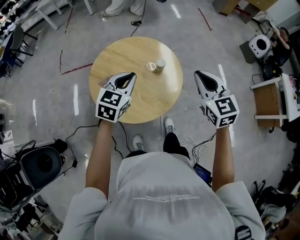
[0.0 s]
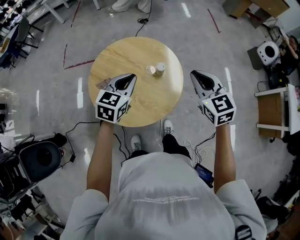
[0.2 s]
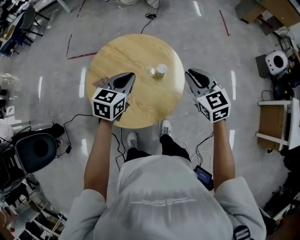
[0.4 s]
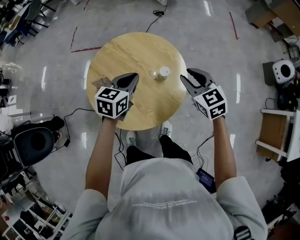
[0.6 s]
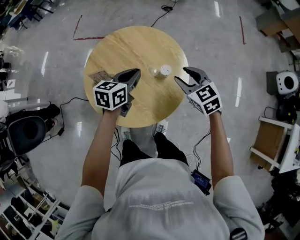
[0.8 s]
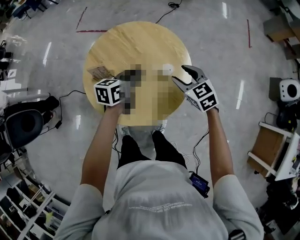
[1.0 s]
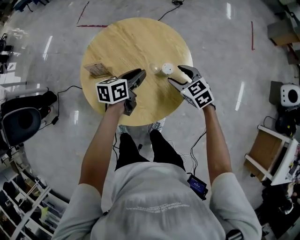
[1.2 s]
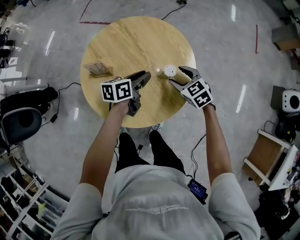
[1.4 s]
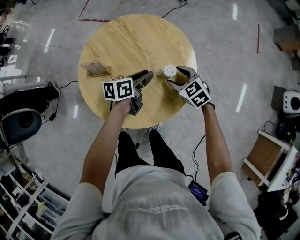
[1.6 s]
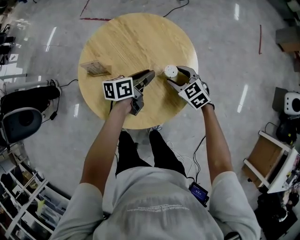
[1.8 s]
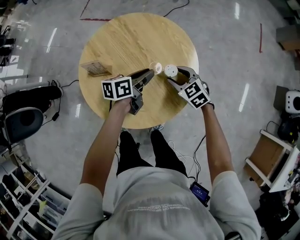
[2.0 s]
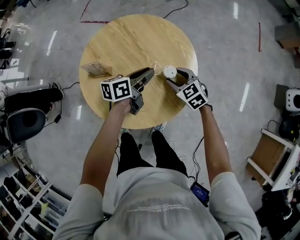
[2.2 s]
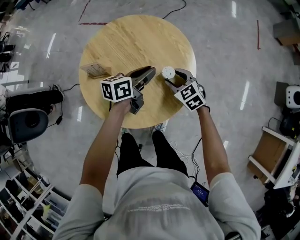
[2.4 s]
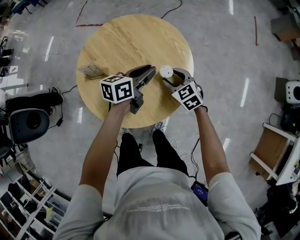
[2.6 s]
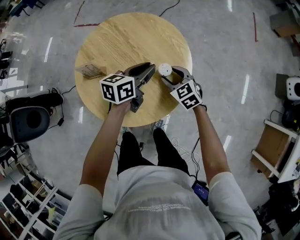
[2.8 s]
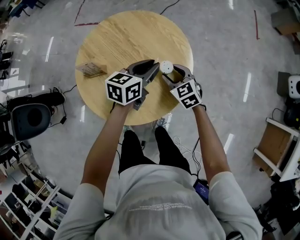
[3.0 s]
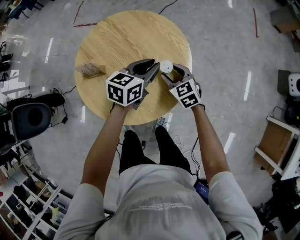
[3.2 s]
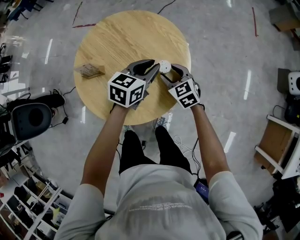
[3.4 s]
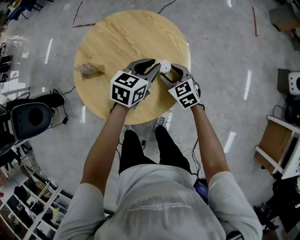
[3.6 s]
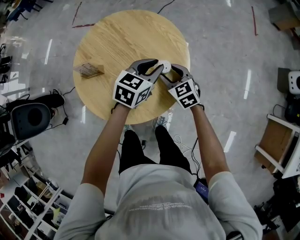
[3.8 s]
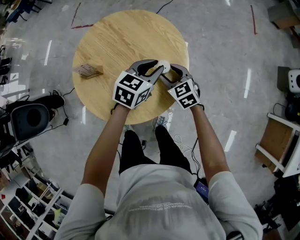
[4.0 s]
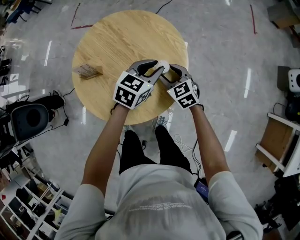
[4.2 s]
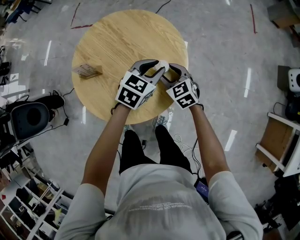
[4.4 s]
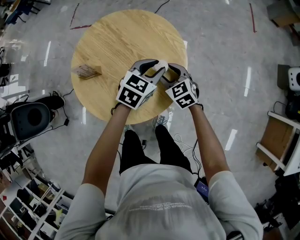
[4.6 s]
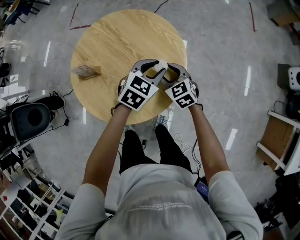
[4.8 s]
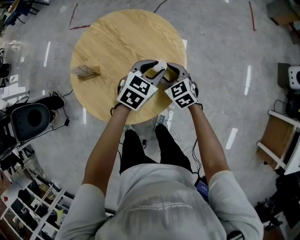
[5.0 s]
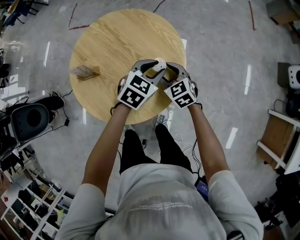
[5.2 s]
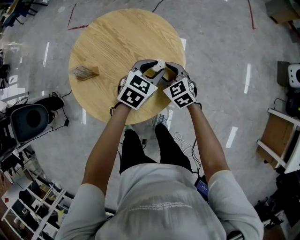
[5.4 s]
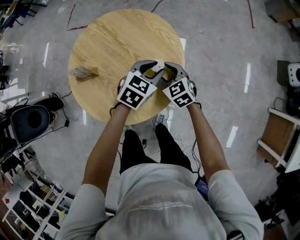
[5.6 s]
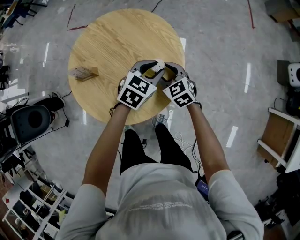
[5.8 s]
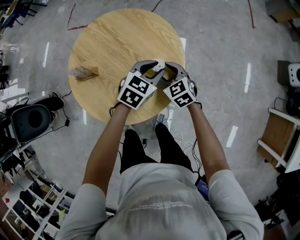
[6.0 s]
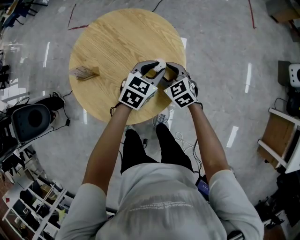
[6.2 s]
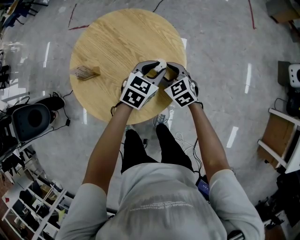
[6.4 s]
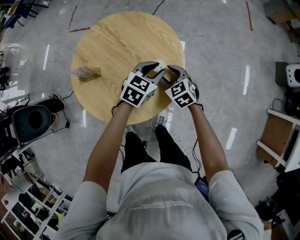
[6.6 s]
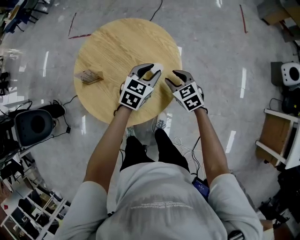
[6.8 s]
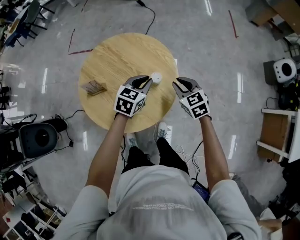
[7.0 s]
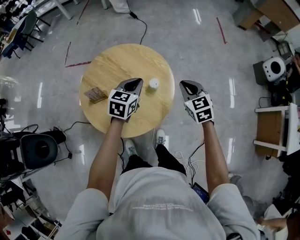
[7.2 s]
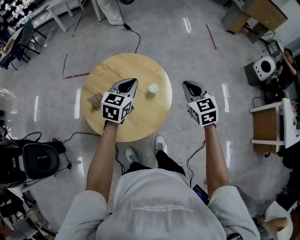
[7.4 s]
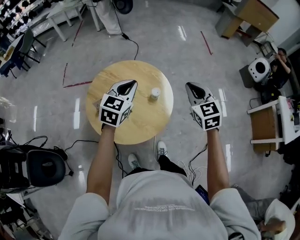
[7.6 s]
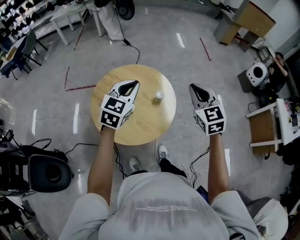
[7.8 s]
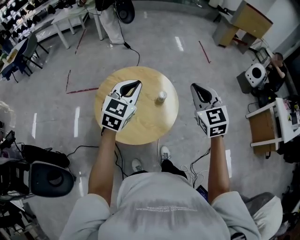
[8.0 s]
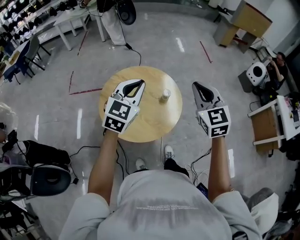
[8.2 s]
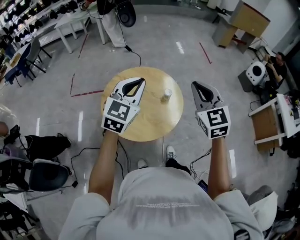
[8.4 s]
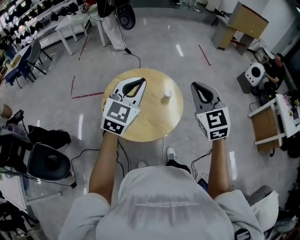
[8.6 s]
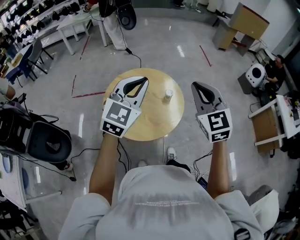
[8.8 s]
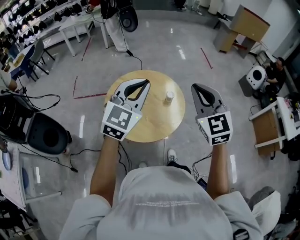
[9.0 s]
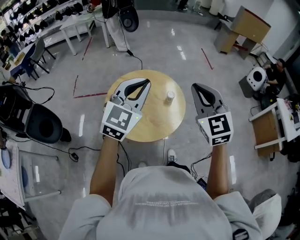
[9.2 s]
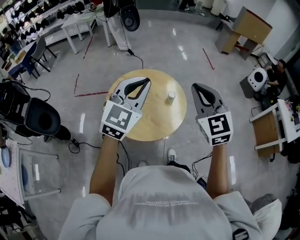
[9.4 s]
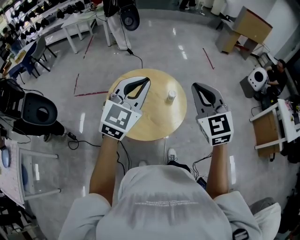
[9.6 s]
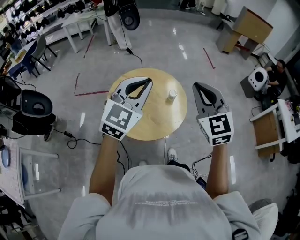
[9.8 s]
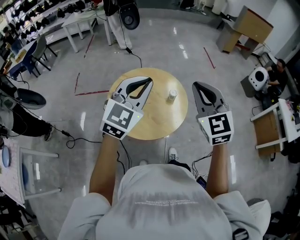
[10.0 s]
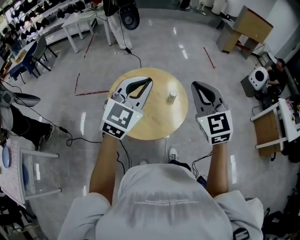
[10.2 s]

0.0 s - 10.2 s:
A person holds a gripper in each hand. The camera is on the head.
0.0 s - 1.4 s: The two grippers go some 25 cm downward. The right gripper rotates roughly 50 degrees, and opens; the left gripper rotates around the line of its fingers by approximately 60 degrees, counterclockwise from behind, and opens up.
1.4 s - 3.0 s: The left gripper moves to the right, about 5 cm, and turns by roughly 20 degrees.
3.0 s - 4.4 s: The left gripper shifts by roughly 5 cm, and swivels about 30 degrees.
4.4 s - 5.8 s: The grippers make only small movements.
5.8 s - 7.2 s: The left gripper travels upward and to the left by some 15 cm, and closes up; the right gripper goes approximately 20 cm upward and to the right, changes its angle by about 20 degrees, and closes.
7.2 s - 8.8 s: Both grippers move upward and backward, roughly 35 cm. The right gripper turns by some 30 degrees, while the left gripper turns by about 40 degrees.
8.8 s - 10.2 s: The grippers move only a little.

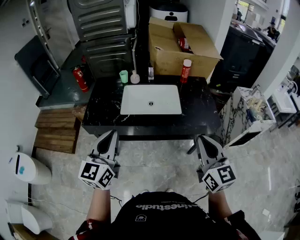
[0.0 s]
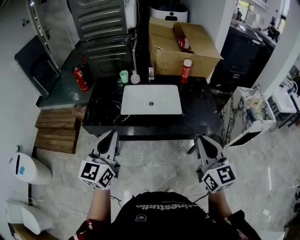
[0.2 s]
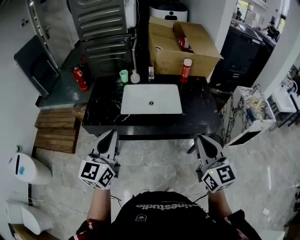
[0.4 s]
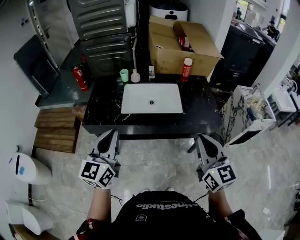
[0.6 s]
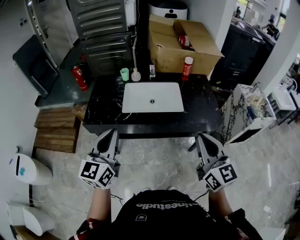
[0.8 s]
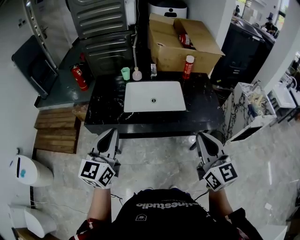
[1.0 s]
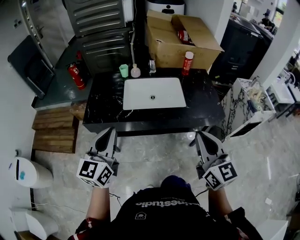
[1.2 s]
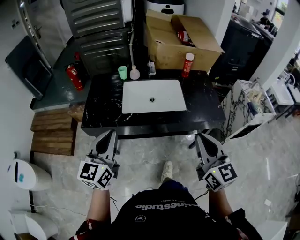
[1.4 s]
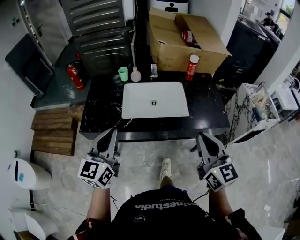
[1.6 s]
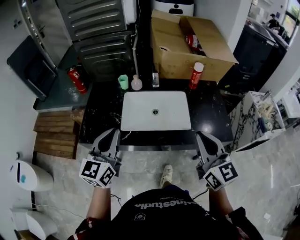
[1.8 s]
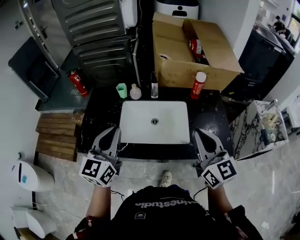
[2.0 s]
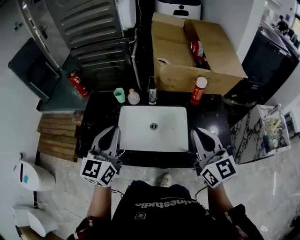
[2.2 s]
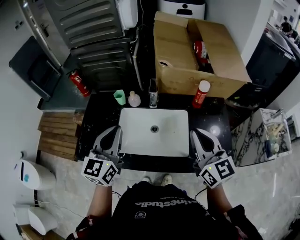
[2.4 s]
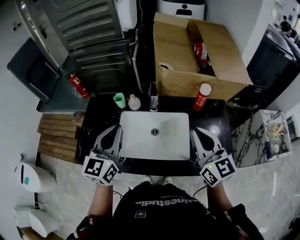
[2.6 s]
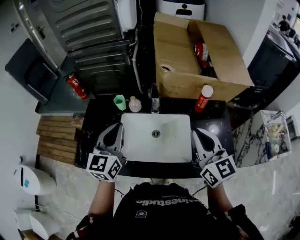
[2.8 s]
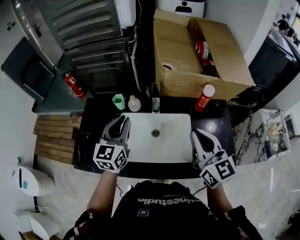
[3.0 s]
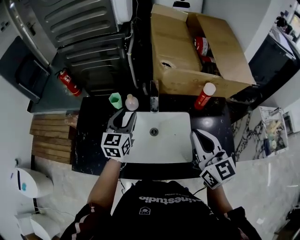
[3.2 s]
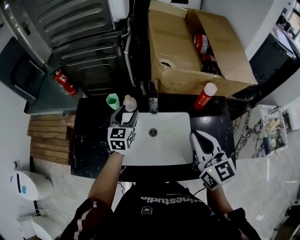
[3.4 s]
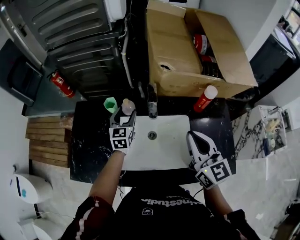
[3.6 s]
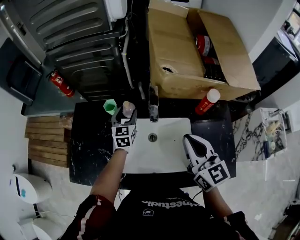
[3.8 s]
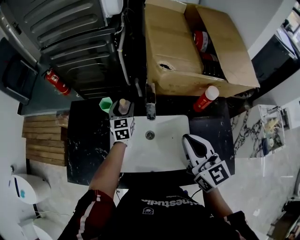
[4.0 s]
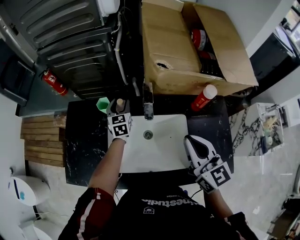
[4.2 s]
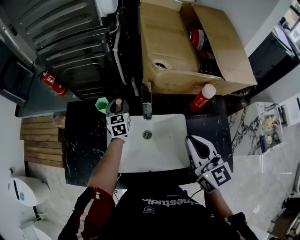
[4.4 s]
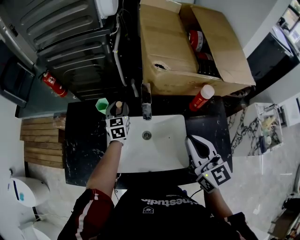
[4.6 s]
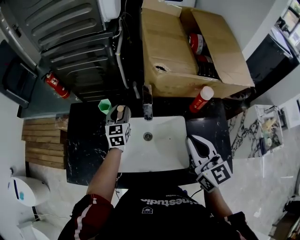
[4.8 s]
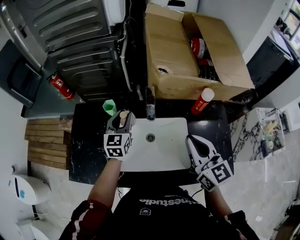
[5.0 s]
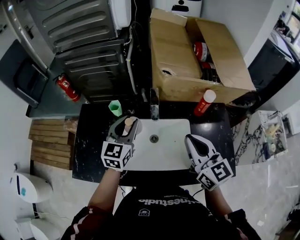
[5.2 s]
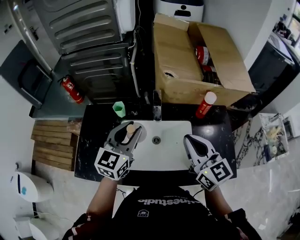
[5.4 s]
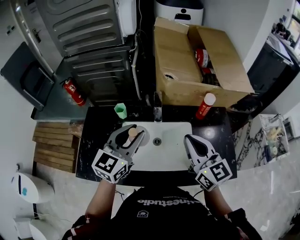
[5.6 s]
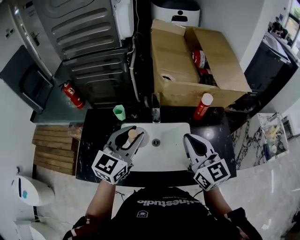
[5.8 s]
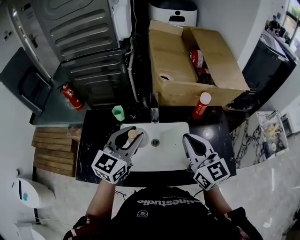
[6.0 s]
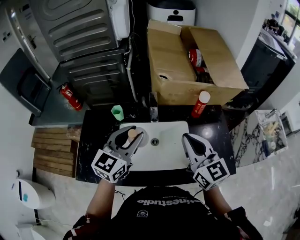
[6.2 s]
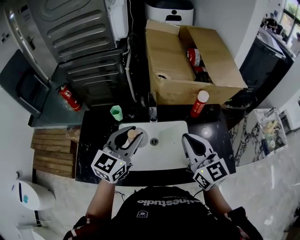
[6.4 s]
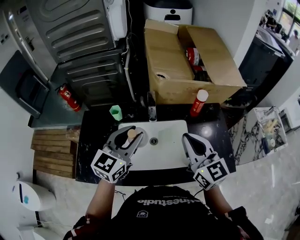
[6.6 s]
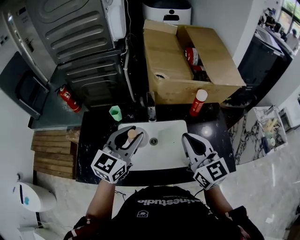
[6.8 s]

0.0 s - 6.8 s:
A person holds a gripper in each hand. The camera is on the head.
0.0 s - 1.4 s: The left gripper shifts by approximately 5 cm. The right gripper travels to the left by roughly 5 cm.
1.4 s - 2.8 s: The grippers both shift forward by some 35 cm.
2.8 s - 4.0 s: The left gripper travels forward and downward by some 35 cm, and opens its fingers; the right gripper goes approximately 10 cm forward and downward.
4.0 s - 5.4 s: The right gripper moves approximately 5 cm; the left gripper travels backward and upward by about 30 cm, turns by some 30 degrees, and closes its fingers.
5.4 s - 6.8 s: The left gripper ends up roughly 5 cm from where it was.

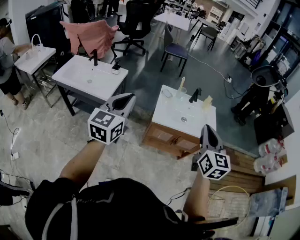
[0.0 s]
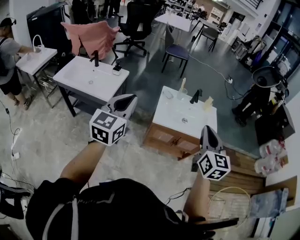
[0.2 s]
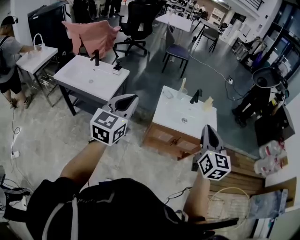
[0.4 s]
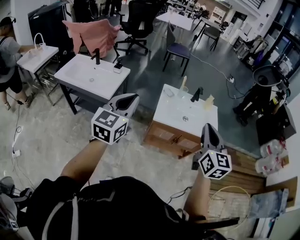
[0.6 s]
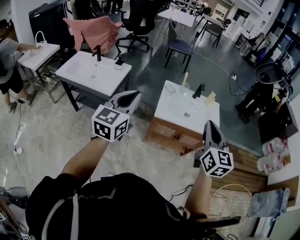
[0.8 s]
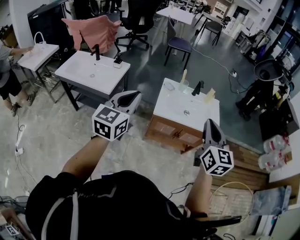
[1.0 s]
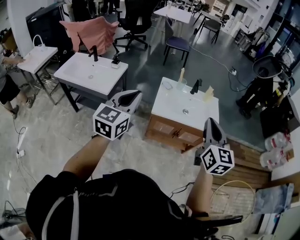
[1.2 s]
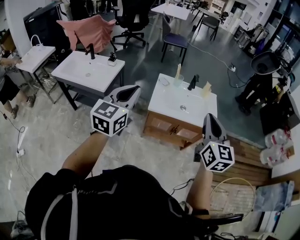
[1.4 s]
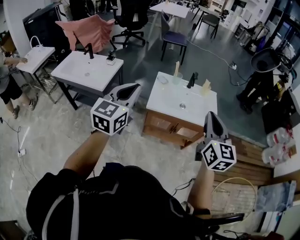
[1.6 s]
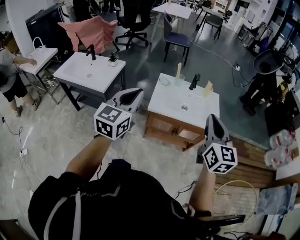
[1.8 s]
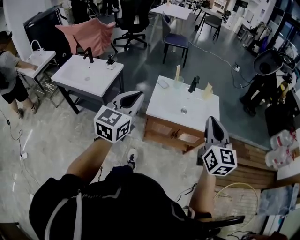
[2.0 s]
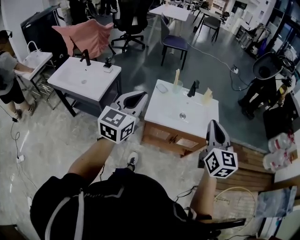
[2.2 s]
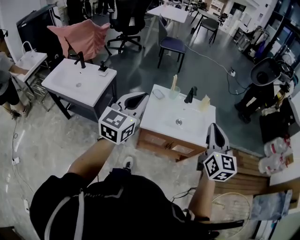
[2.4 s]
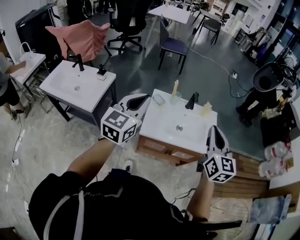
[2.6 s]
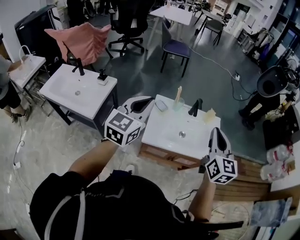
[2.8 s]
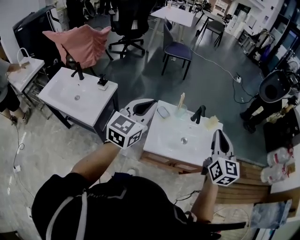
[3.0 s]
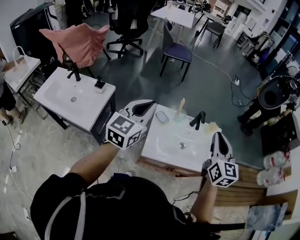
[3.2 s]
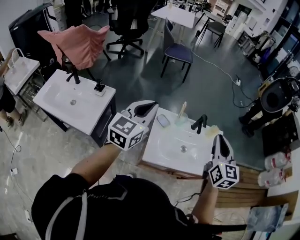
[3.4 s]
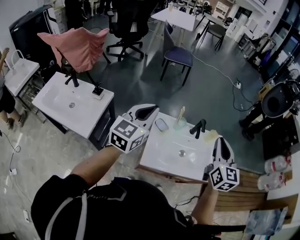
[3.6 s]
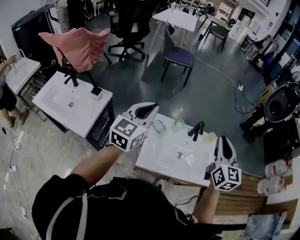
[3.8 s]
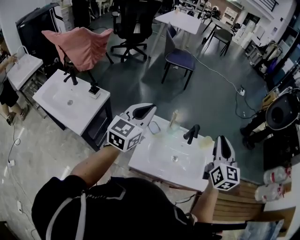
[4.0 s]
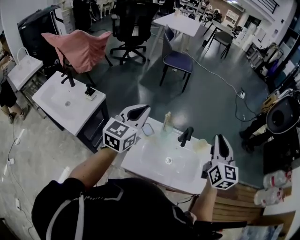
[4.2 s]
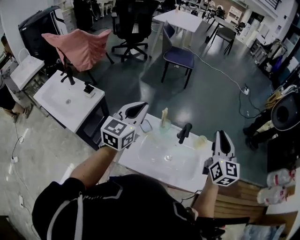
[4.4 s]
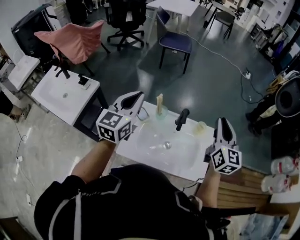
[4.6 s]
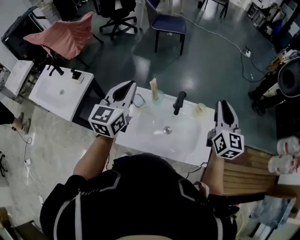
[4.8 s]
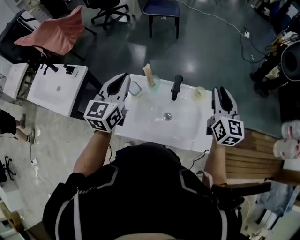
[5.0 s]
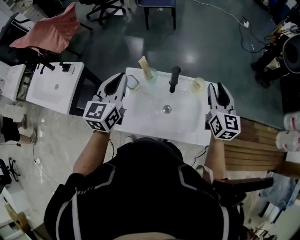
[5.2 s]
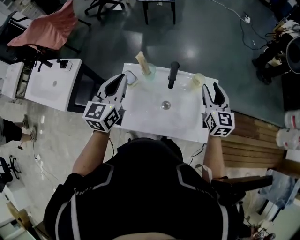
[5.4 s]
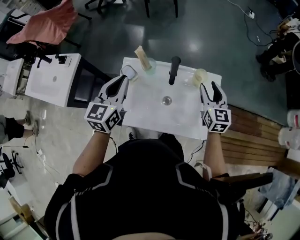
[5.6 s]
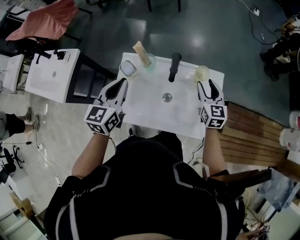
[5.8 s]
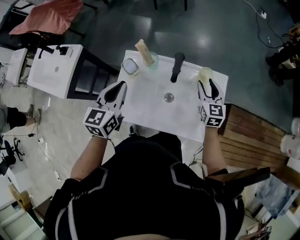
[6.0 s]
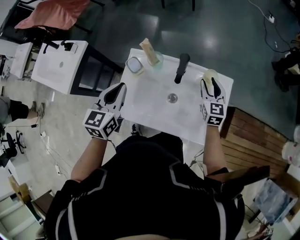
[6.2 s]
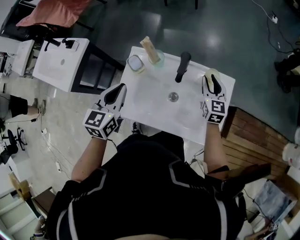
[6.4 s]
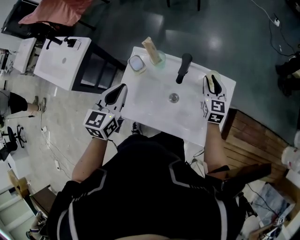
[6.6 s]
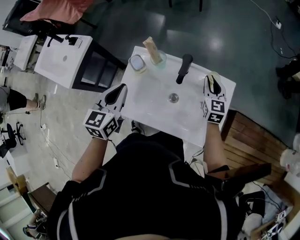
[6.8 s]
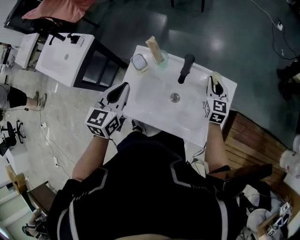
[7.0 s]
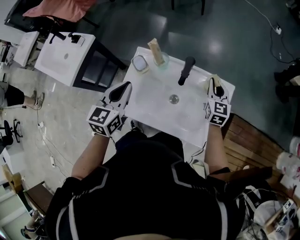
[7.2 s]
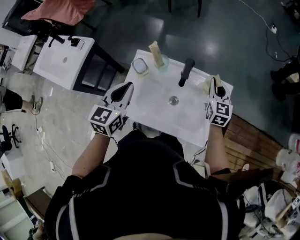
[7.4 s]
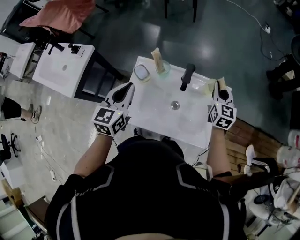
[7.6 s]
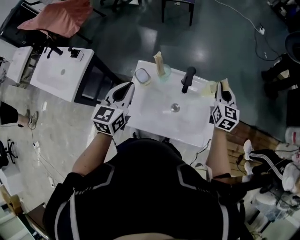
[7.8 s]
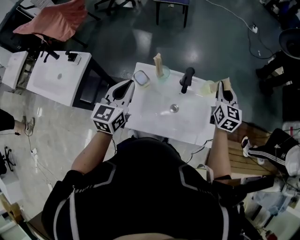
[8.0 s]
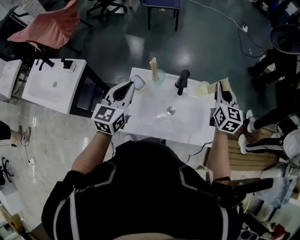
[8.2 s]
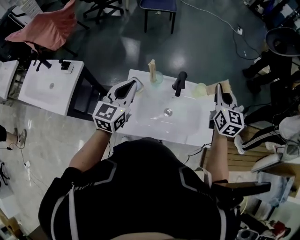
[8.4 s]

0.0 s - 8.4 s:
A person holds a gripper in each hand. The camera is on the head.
0.0 s - 1.4 s: Both grippers move to the right, about 10 cm.
1.4 s - 2.8 s: Both grippers move forward, some 25 cm.
2.8 s - 4.2 s: Both grippers move forward, about 20 cm.
4.2 s - 5.6 s: The right gripper travels downward and to the right by about 25 cm, and opens up, while the left gripper goes about 15 cm downward and to the right.
5.6 s - 7.0 s: The right gripper is displaced downward and forward by about 10 cm, and closes its fingers, while the left gripper moves roughly 5 cm.
7.0 s - 8.4 s: The left gripper travels upward by approximately 5 cm, and swivels approximately 20 degrees; the right gripper goes roughly 20 cm upward.
